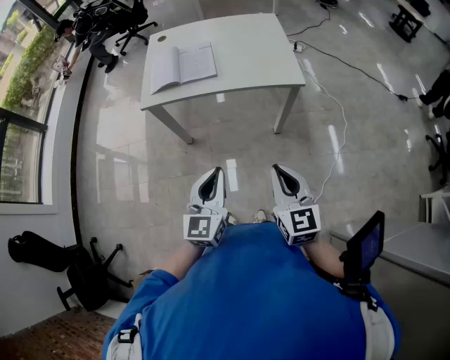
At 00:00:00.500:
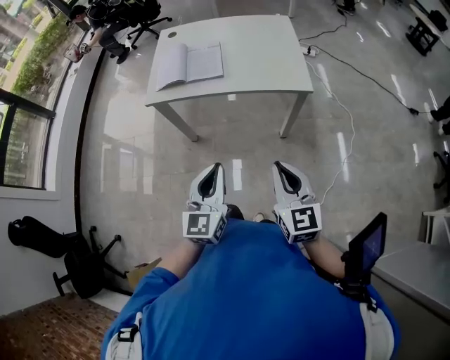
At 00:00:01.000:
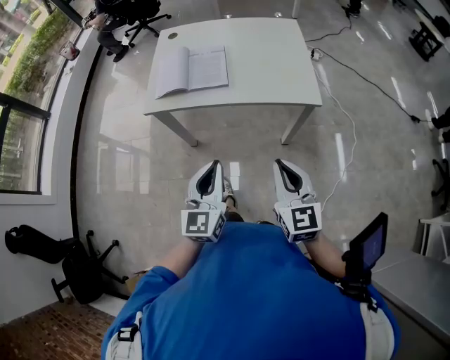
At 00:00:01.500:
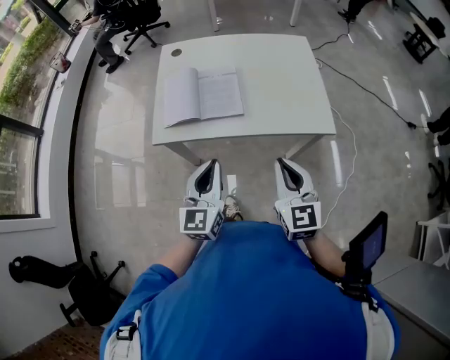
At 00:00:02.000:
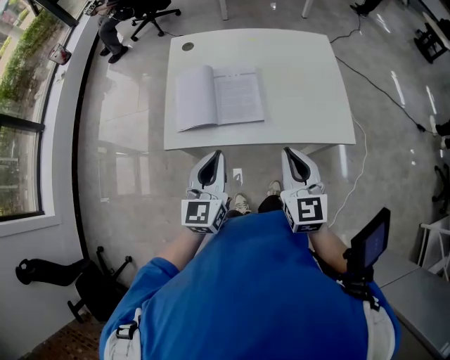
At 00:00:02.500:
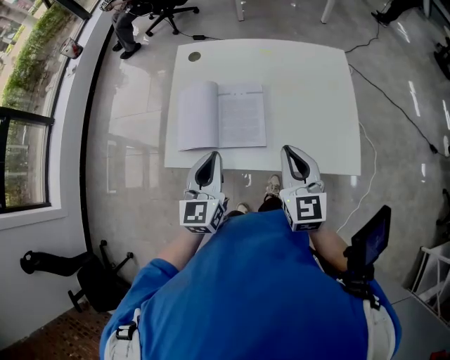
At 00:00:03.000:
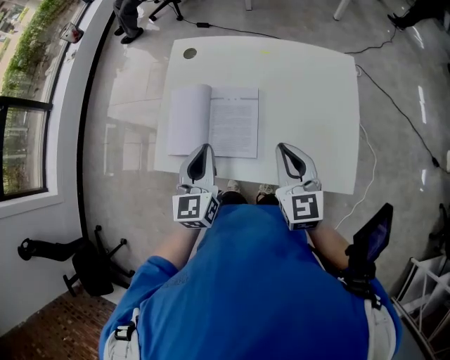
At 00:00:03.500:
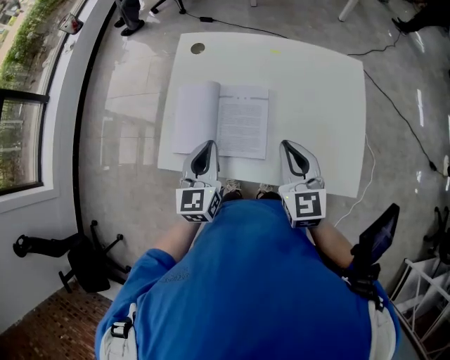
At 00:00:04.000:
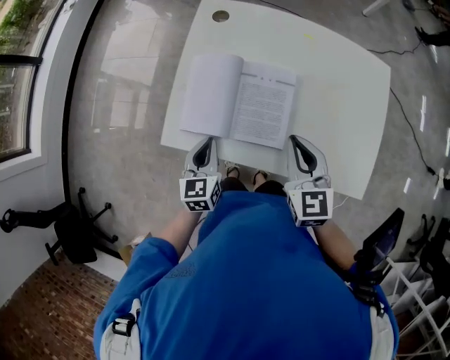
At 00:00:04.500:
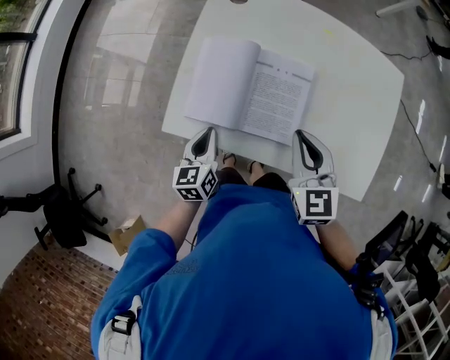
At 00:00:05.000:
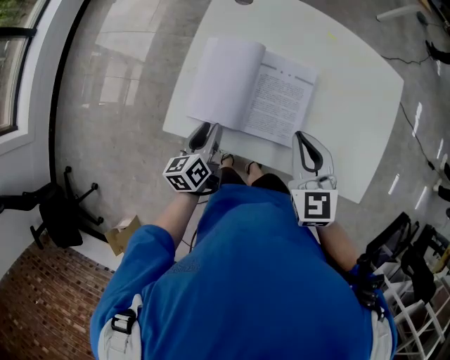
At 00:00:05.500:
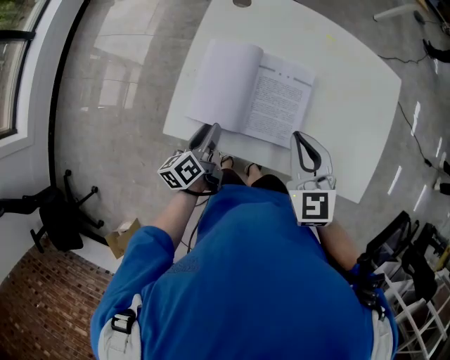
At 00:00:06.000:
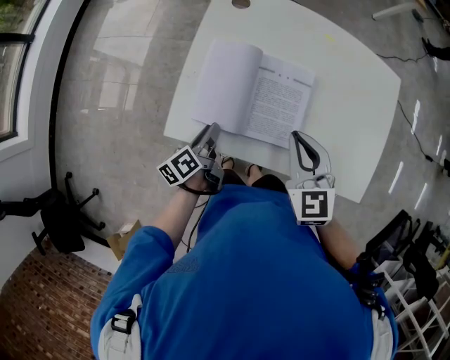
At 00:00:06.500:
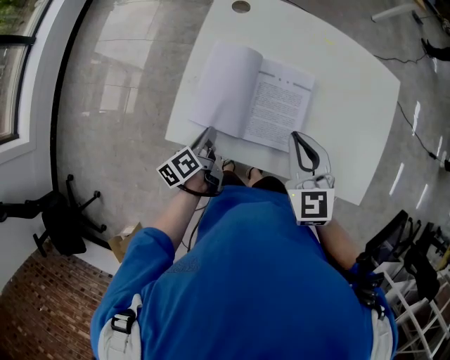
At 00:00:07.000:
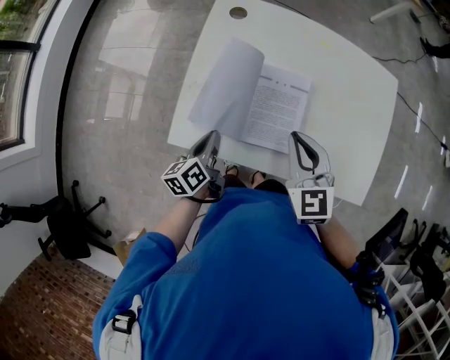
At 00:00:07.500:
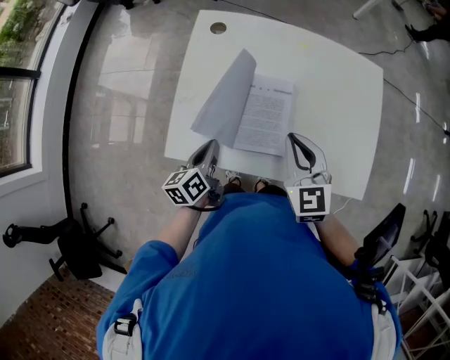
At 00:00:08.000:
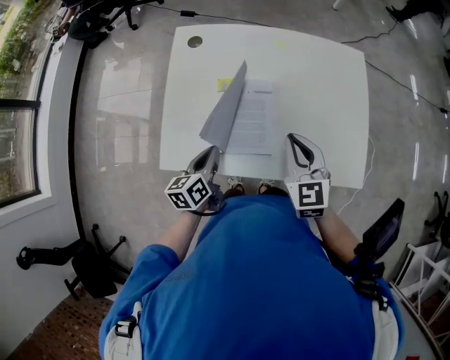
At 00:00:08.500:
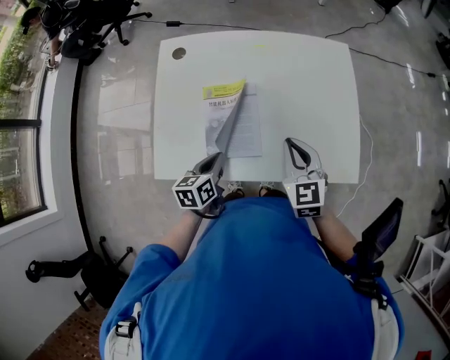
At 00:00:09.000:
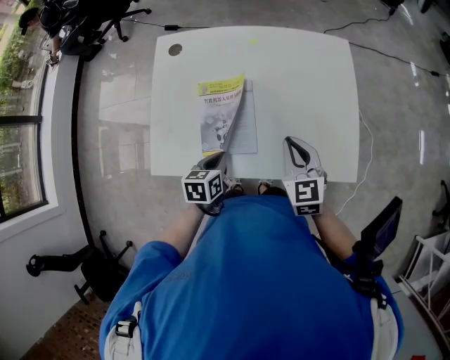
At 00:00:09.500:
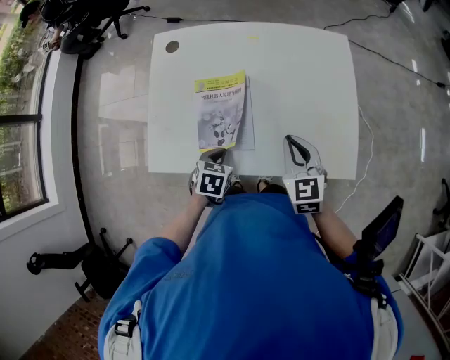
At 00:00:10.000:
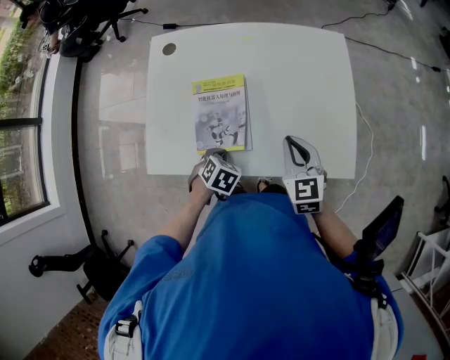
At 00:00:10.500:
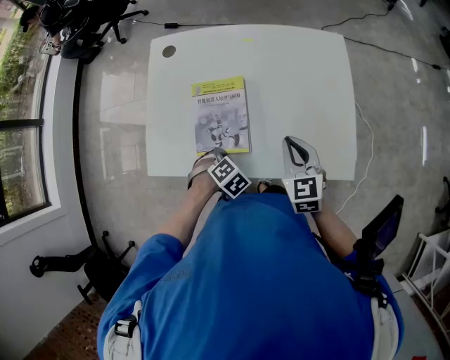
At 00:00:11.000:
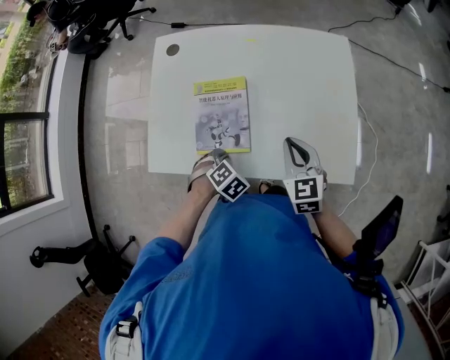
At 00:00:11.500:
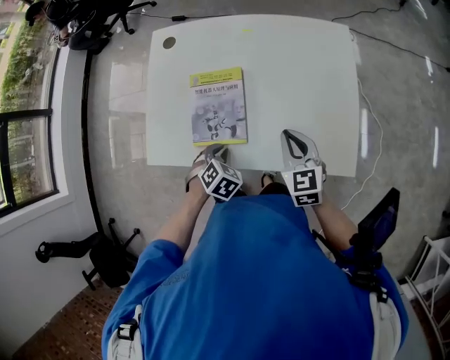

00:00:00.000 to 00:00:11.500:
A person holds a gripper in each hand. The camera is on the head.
00:00:00.000 to 00:00:02.000: The left gripper moves forward and to the left, approximately 35 cm. The right gripper goes about 35 cm forward.
00:00:02.000 to 00:00:04.000: The right gripper goes approximately 20 cm forward, and swivels roughly 20 degrees. Meanwhile the left gripper heads downward and forward, covering approximately 20 cm, and turns by approximately 30 degrees.
00:00:04.000 to 00:00:06.000: The right gripper shifts by roughly 5 cm; the left gripper travels downward by some 5 cm, twists roughly 50 degrees counterclockwise, seen from behind, and opens up.
00:00:06.000 to 00:00:07.500: The left gripper is displaced upward by some 5 cm, changes its angle by roughly 20 degrees, and closes.
00:00:07.500 to 00:00:09.500: Both grippers travel together to the right, approximately 15 cm. The left gripper points its fingers some 30 degrees further downward.
00:00:09.500 to 00:00:11.500: The left gripper changes its angle by some 30 degrees.

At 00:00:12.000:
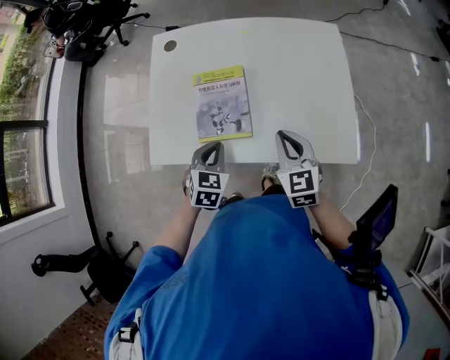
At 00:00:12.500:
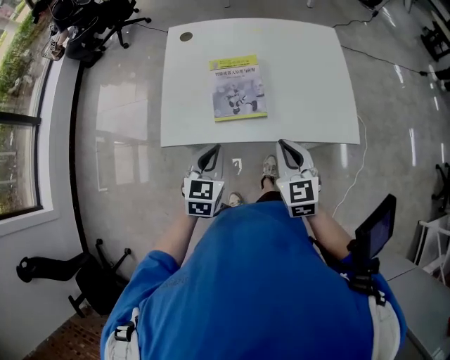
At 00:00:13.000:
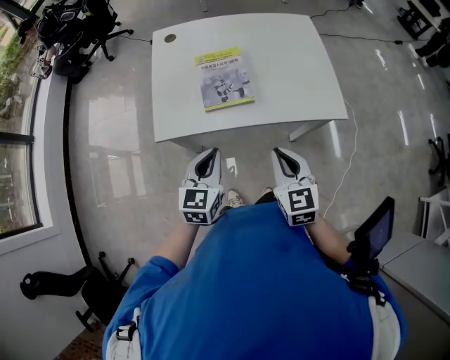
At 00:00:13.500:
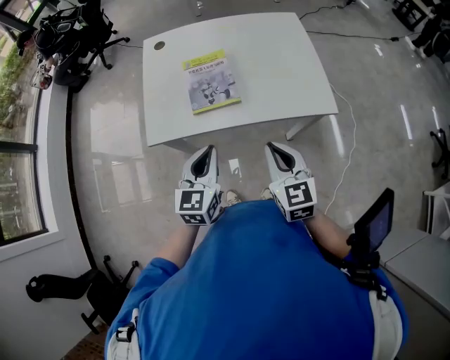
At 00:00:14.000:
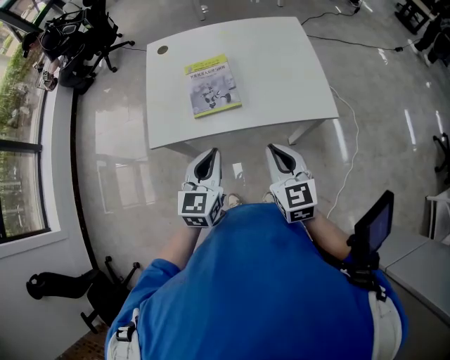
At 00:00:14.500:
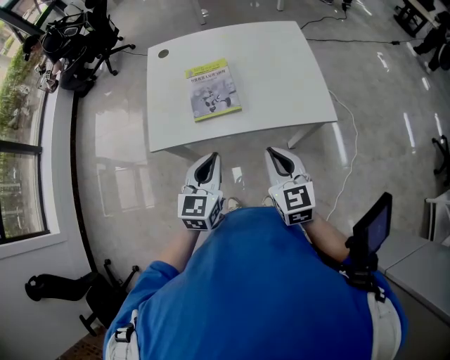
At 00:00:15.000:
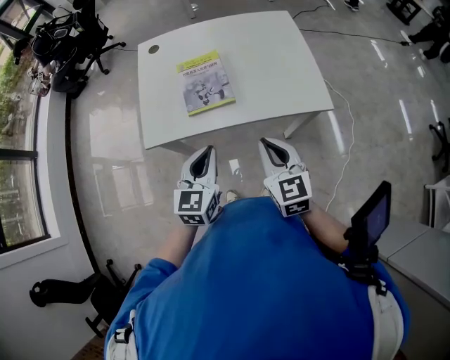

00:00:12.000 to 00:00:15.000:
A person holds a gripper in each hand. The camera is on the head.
00:00:12.000 to 00:00:13.500: The left gripper is displaced backward and upward by roughly 20 cm, and turns by about 30 degrees; the right gripper travels backward by some 20 cm.
00:00:13.500 to 00:00:15.000: There are only small adjustments of the grippers.

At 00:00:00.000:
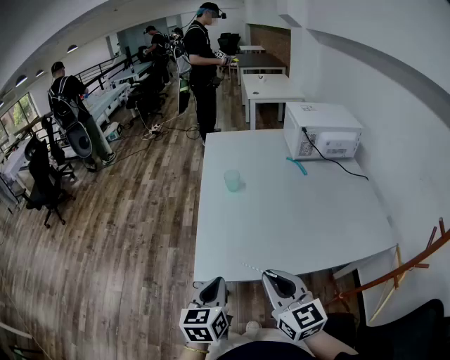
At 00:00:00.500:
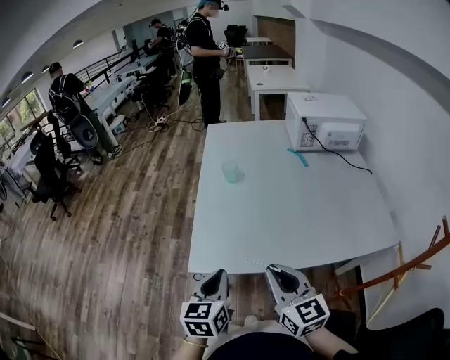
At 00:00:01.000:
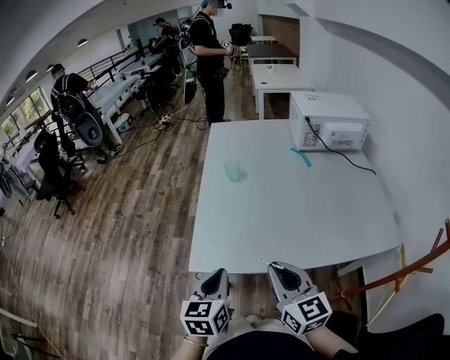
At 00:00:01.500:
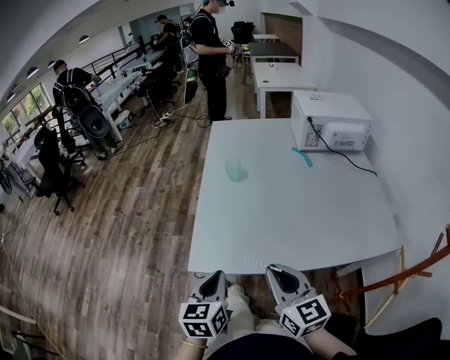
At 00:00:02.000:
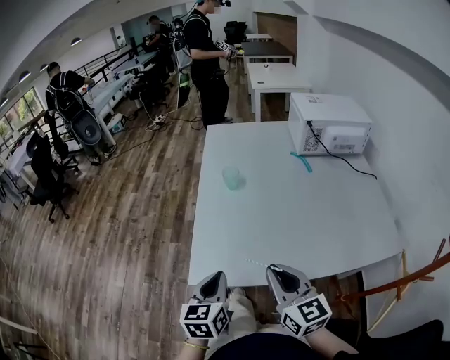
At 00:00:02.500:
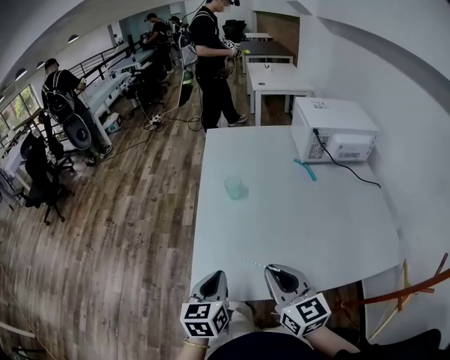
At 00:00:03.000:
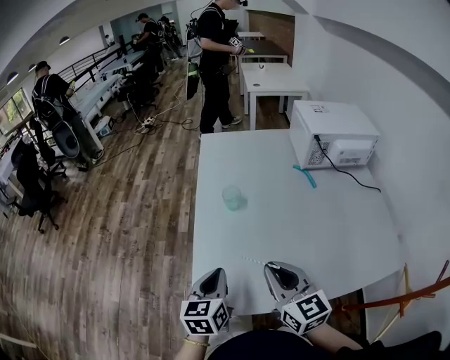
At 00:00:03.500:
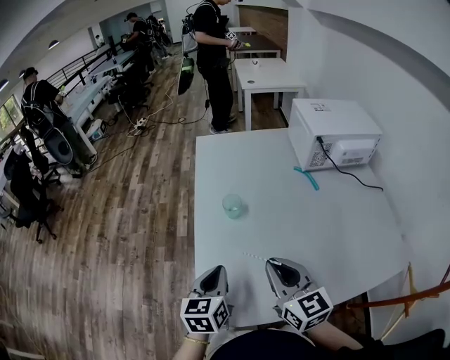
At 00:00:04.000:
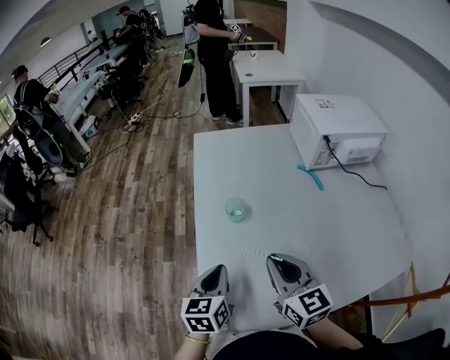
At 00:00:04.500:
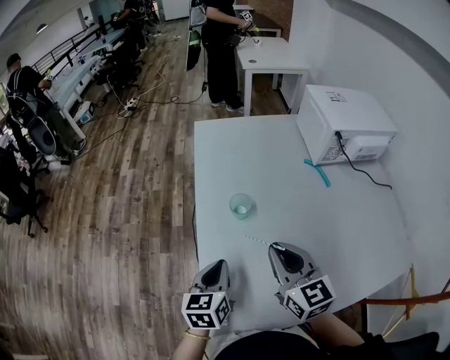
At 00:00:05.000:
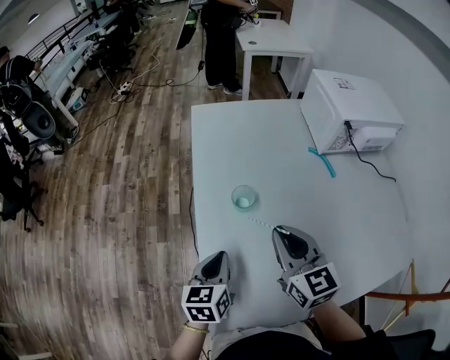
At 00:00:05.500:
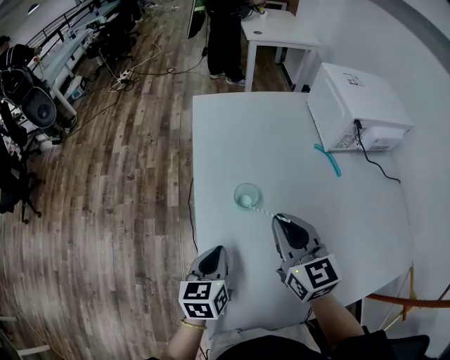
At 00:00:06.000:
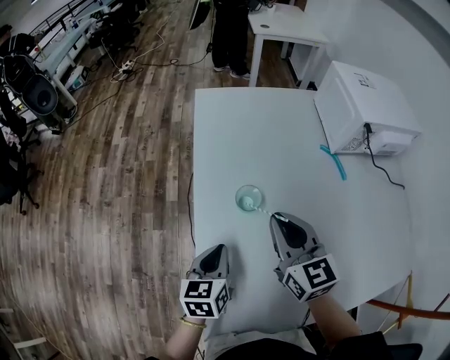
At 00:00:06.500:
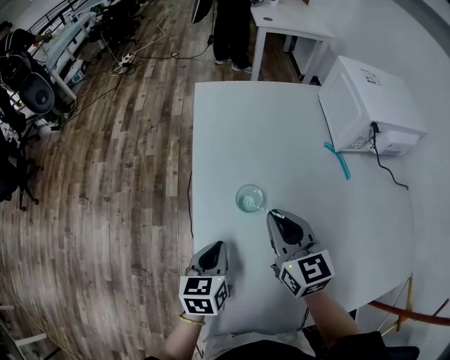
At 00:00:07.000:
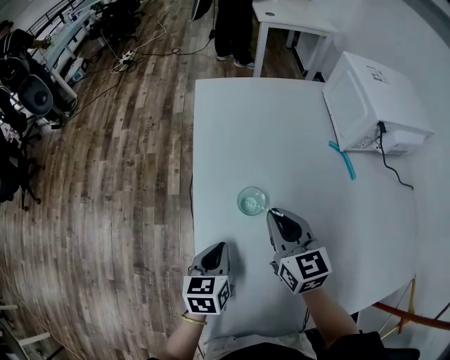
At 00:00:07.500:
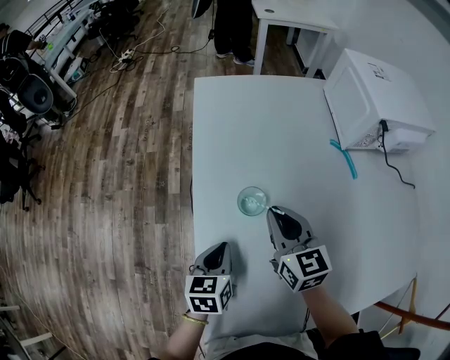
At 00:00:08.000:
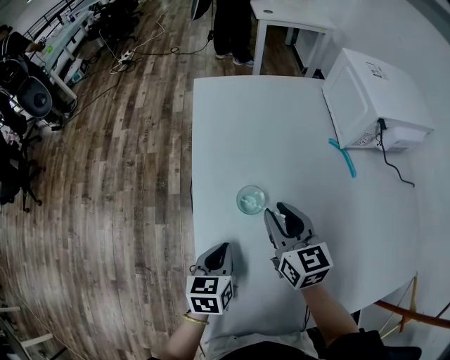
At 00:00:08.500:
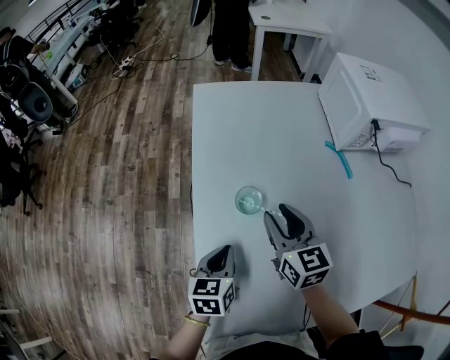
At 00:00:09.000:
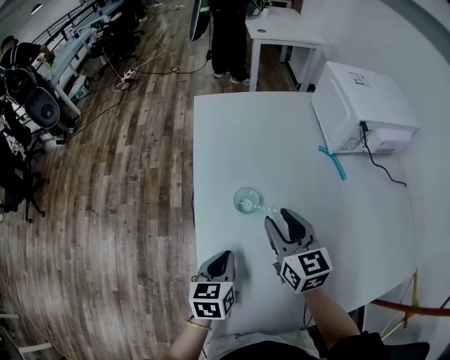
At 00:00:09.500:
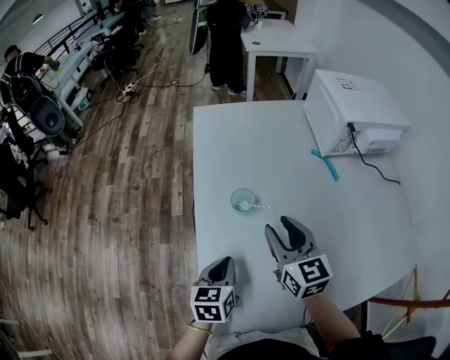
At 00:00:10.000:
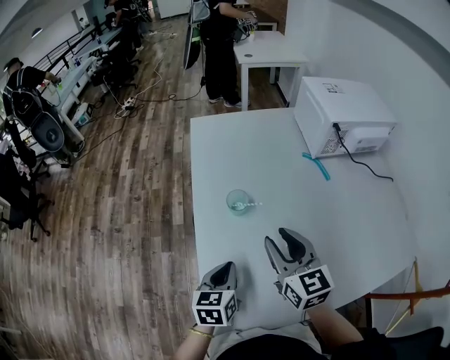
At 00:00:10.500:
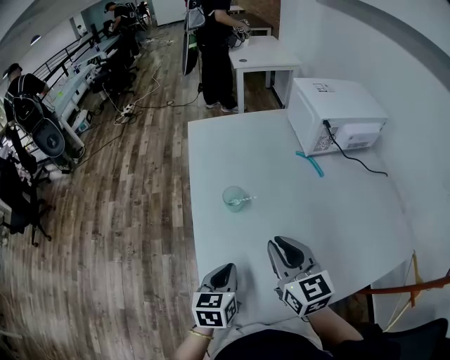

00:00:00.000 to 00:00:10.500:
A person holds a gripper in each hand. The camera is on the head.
00:00:00.000 to 00:00:02.000: The two grippers go approximately 5 cm forward.
00:00:02.000 to 00:00:04.000: The grippers both shift forward by about 25 cm.
00:00:04.000 to 00:00:06.500: Both grippers travel together forward and downward, approximately 15 cm.
00:00:06.500 to 00:00:08.500: The right gripper opens.
00:00:08.500 to 00:00:10.500: The two grippers go some 15 cm backward and upward.

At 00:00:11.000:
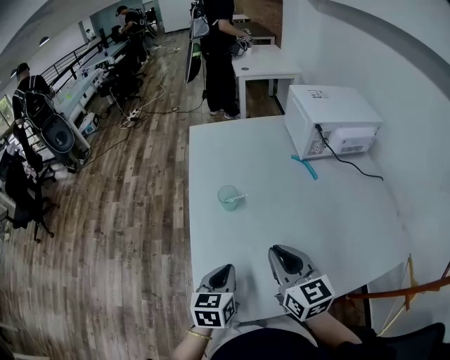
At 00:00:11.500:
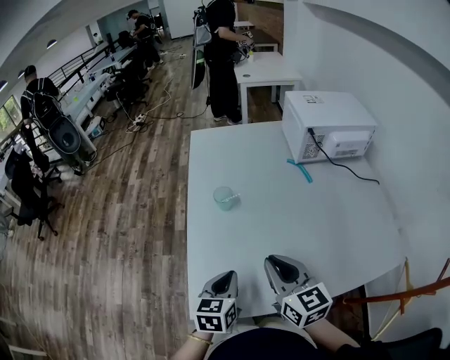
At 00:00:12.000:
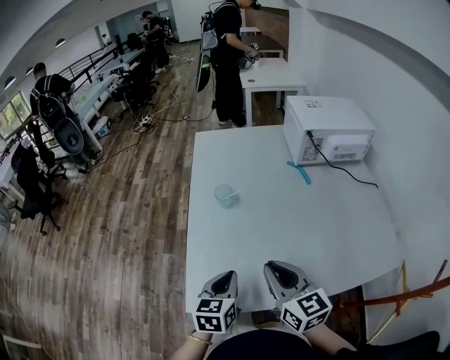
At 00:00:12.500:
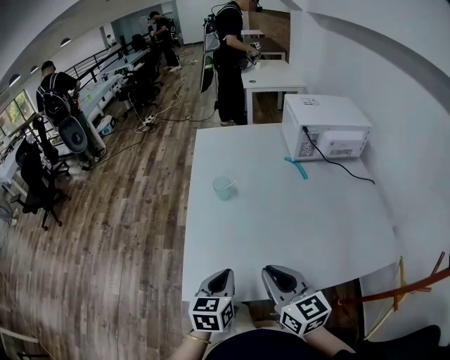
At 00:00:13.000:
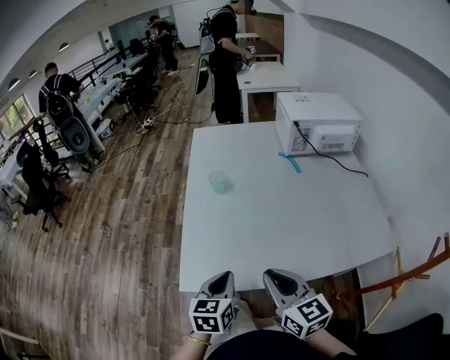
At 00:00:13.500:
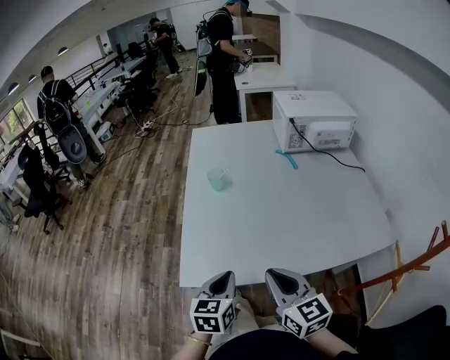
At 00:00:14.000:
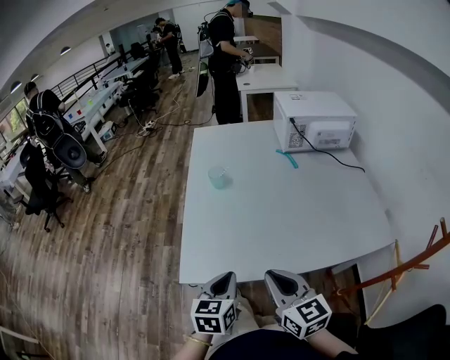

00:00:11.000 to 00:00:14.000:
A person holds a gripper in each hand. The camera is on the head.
00:00:11.000 to 00:00:12.500: Both grippers travel together backward, some 10 cm.
00:00:12.500 to 00:00:14.000: The two grippers go some 10 cm backward.
